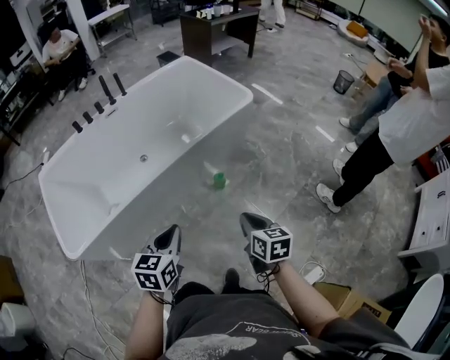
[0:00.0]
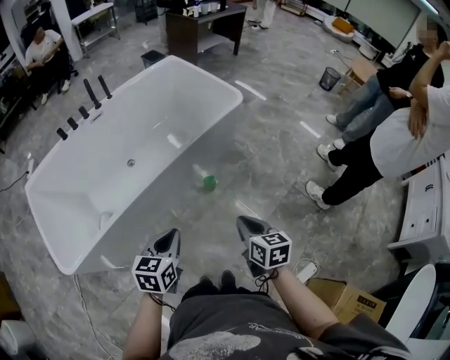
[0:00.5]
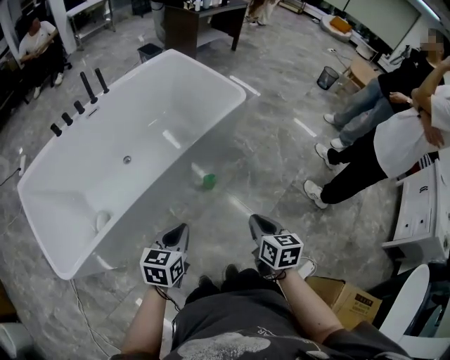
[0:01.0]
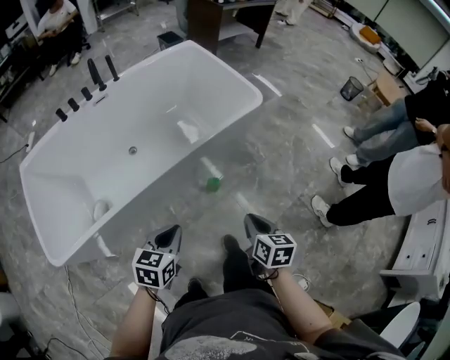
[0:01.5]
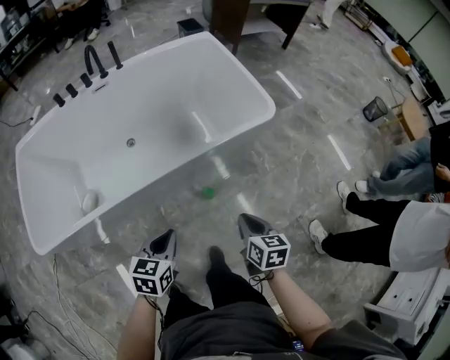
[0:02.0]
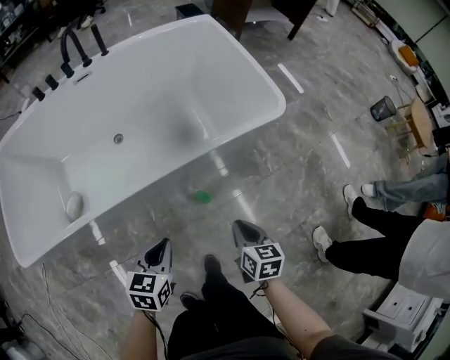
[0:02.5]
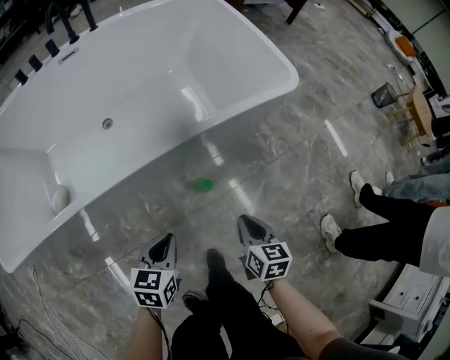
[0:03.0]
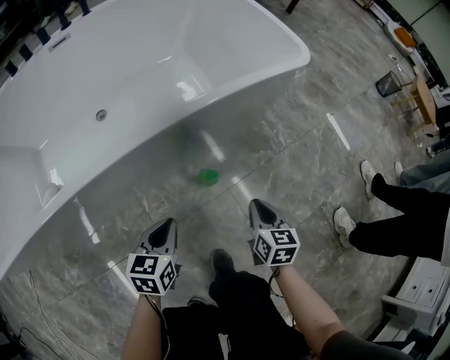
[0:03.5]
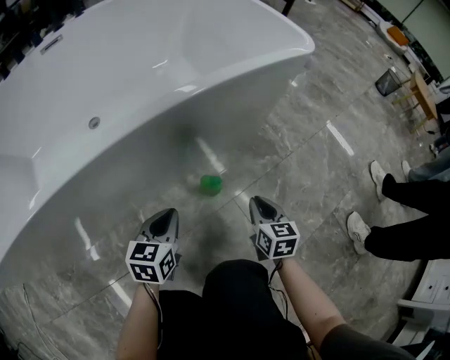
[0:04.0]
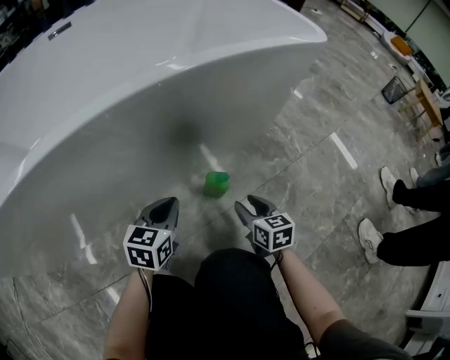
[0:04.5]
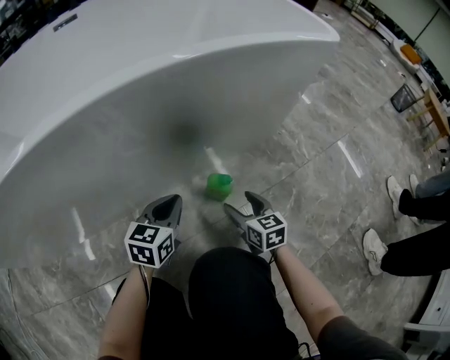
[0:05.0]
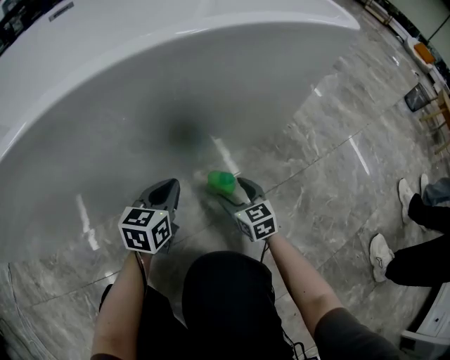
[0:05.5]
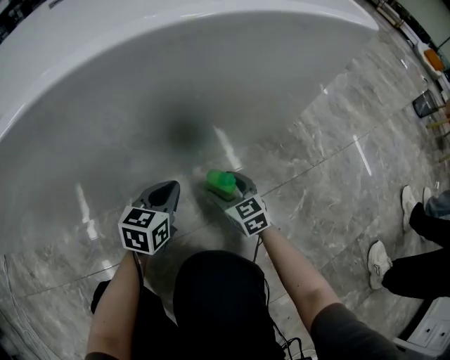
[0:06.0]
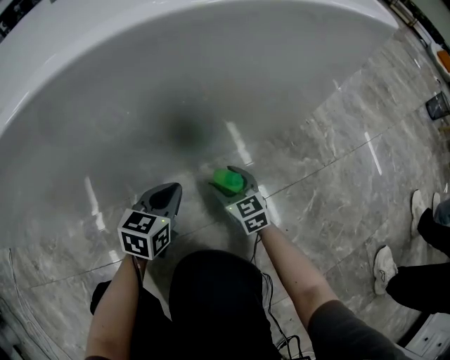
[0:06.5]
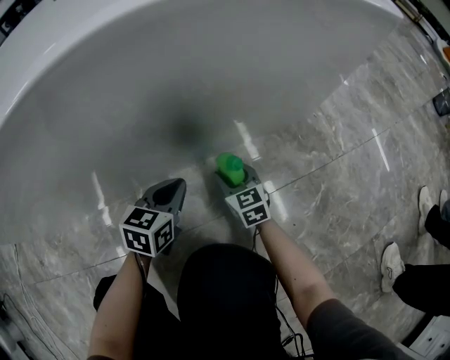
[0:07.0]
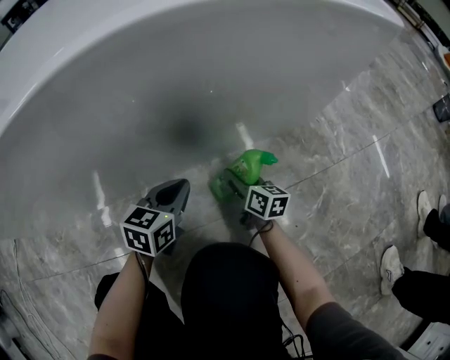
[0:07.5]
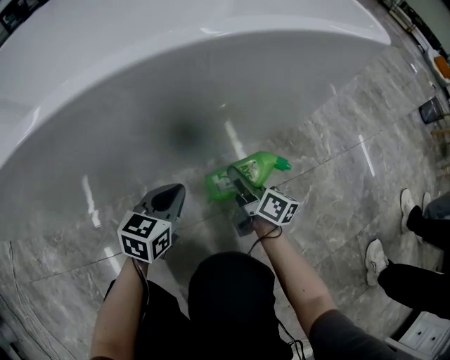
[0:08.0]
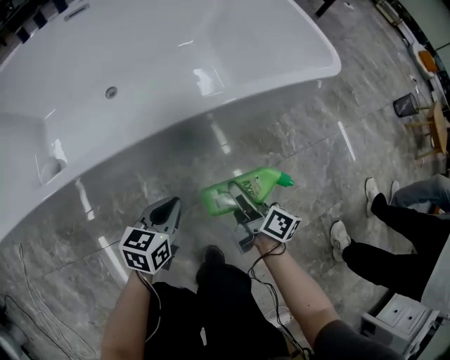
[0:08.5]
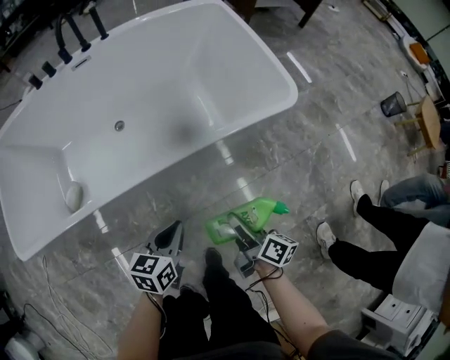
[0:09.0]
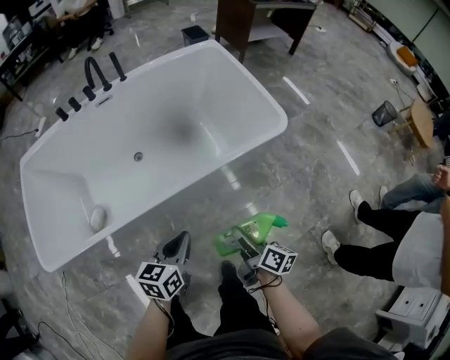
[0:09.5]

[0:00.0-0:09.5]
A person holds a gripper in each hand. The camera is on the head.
0:00.0 to 0:02.0: The right gripper shifts some 25 cm forward. The left gripper moves forward and downward, approximately 25 cm.
0:02.0 to 0:04.0: The grippers both shift downward by approximately 40 cm.
0:04.0 to 0:05.5: The right gripper goes roughly 20 cm downward, to the left and forward, rotates approximately 30 degrees, and opens up. Meanwhile the left gripper shifts roughly 15 cm downward and forward.
0:05.5 to 0:07.5: The right gripper ends up about 5 cm from where it was, turns by about 40 degrees, and closes.
0:07.5 to 0:09.5: The grippers both shift upward by approximately 60 cm. The right gripper turns by about 30 degrees.

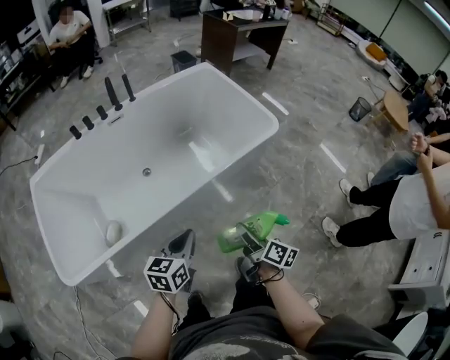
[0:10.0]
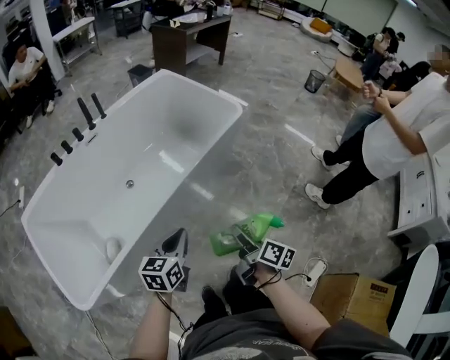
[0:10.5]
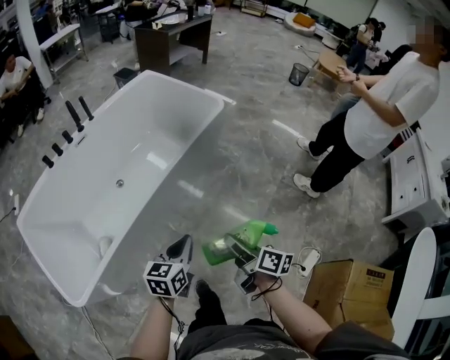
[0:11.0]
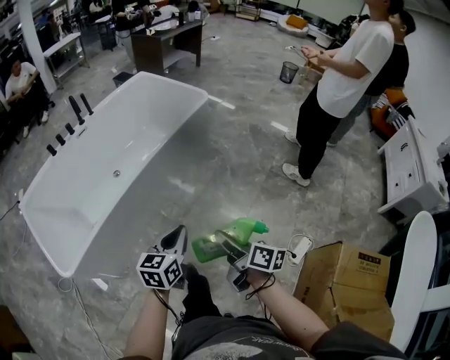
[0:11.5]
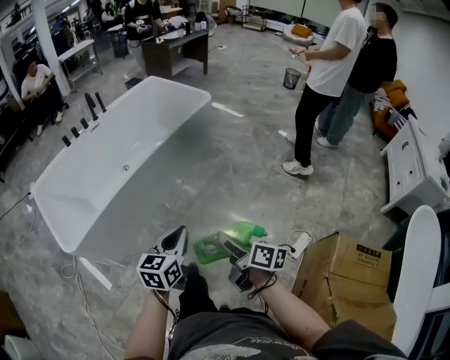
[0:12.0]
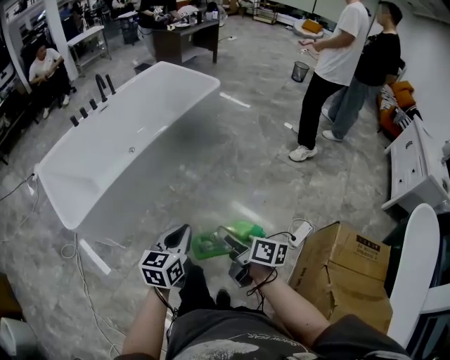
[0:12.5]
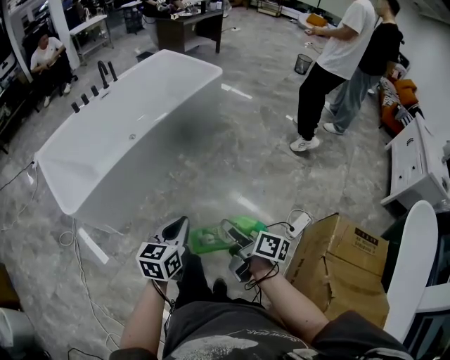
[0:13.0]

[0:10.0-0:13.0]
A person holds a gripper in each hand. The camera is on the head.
0:10.0 to 0:11.5: The two grippers go some 35 cm backward.
0:11.5 to 0:13.0: The grippers both shift backward by about 25 cm.

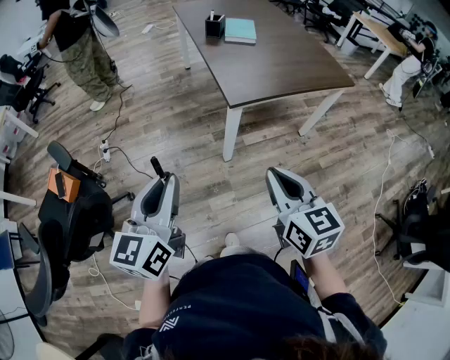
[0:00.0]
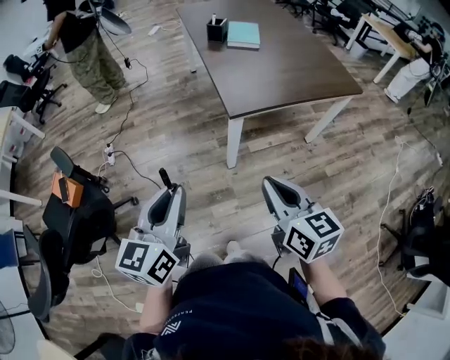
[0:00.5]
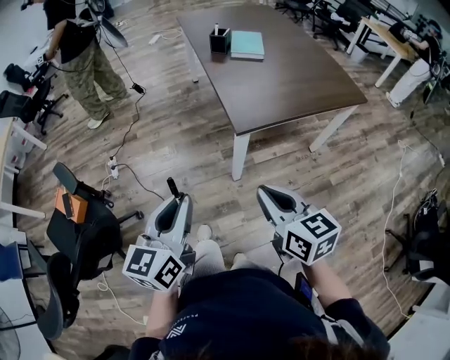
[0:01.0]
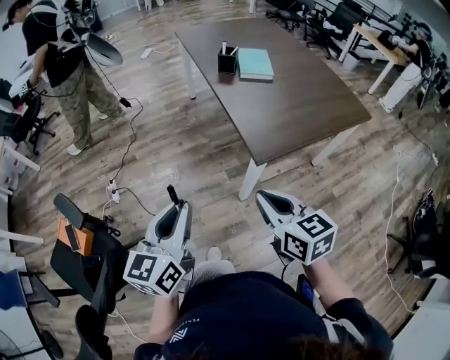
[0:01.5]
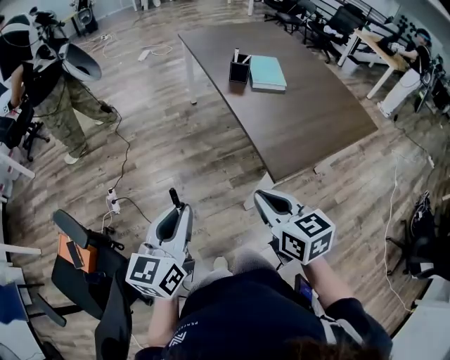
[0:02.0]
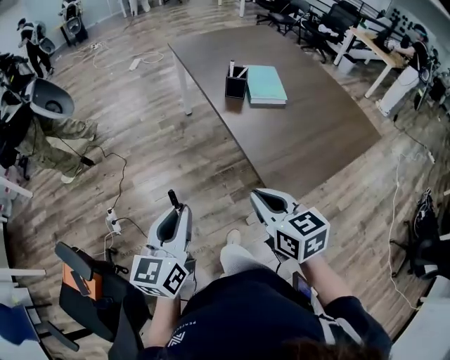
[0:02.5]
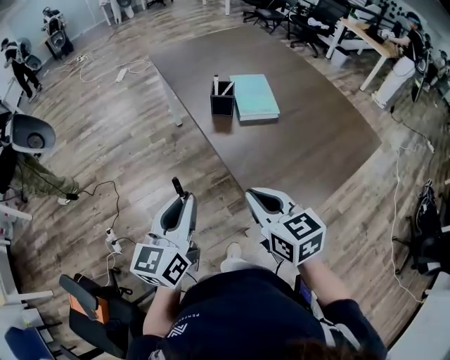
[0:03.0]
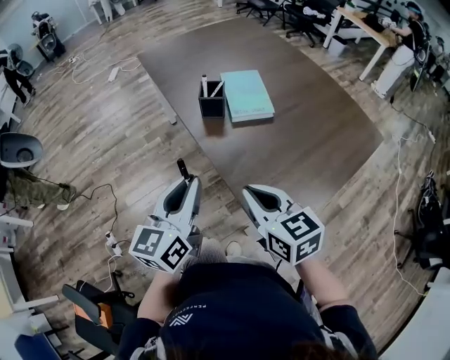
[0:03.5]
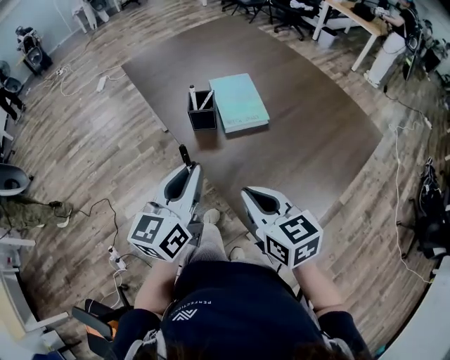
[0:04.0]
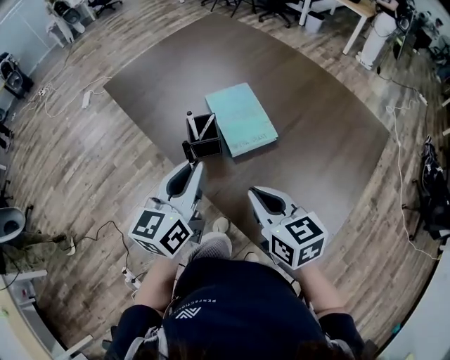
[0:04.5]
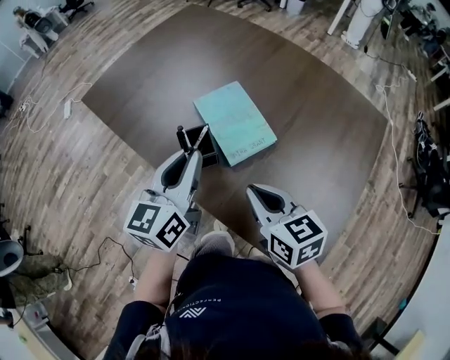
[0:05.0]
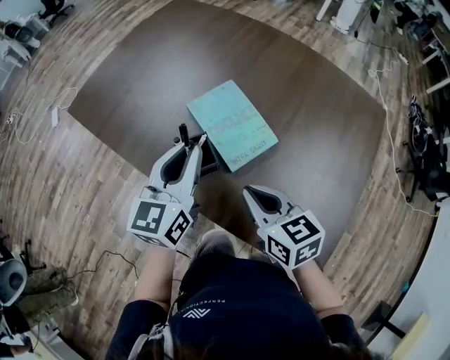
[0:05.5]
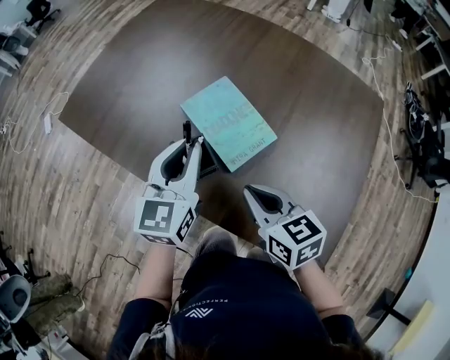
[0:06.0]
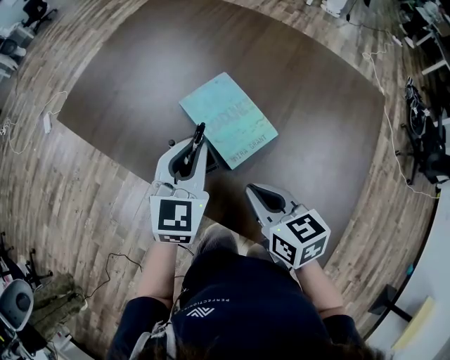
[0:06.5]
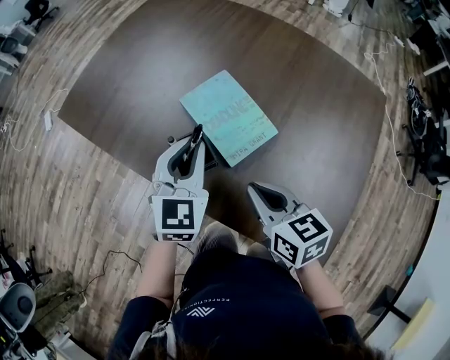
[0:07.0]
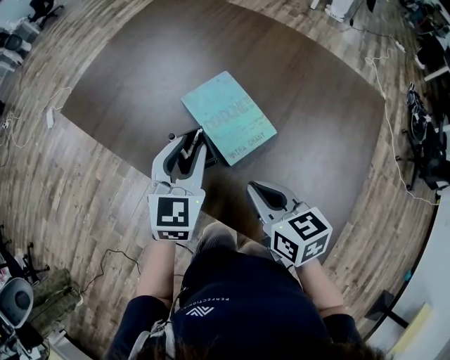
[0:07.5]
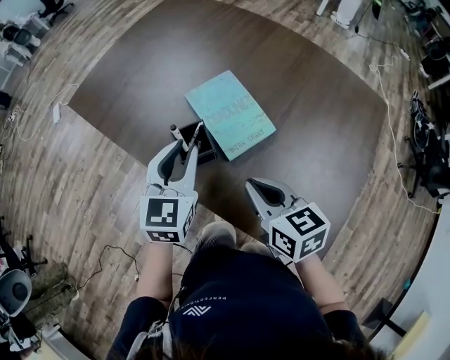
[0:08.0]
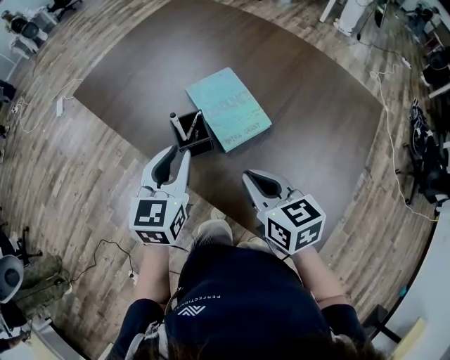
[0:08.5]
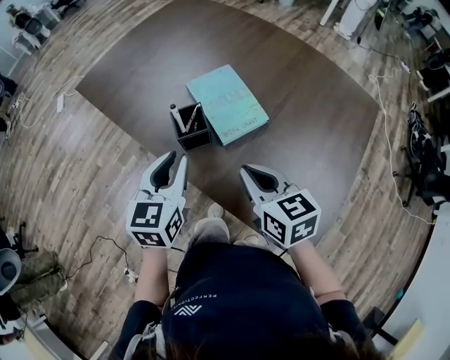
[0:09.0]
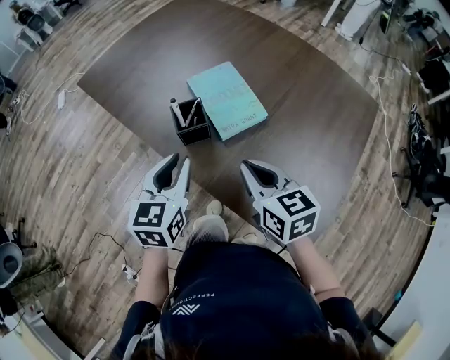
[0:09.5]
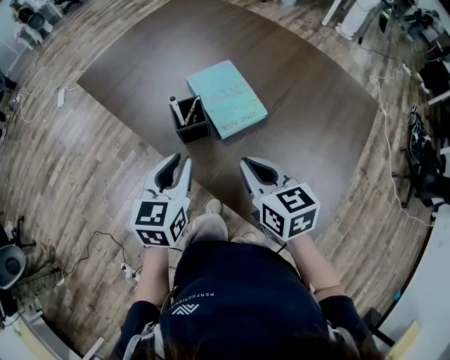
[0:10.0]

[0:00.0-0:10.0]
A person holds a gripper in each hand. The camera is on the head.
0:00.0 to 0:02.0: Both grippers move forward and to the left, roughly 30 cm.
0:02.0 to 0:04.0: The grippers both shift forward by some 35 cm.
0:04.0 to 0:06.0: The grippers both shift forward by approximately 25 cm. The right gripper turns by about 30 degrees. Meanwhile the left gripper rotates roughly 30 degrees.
0:06.0 to 0:08.0: The grippers make only small movements.
0:08.0 to 0:10.0: The left gripper heads backward, covering approximately 10 cm.

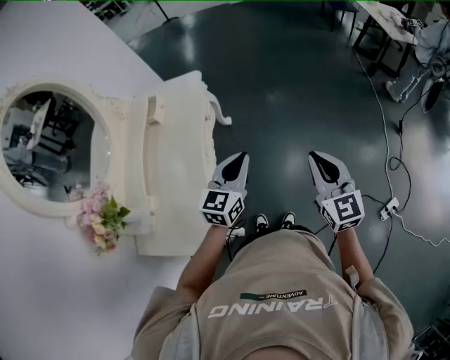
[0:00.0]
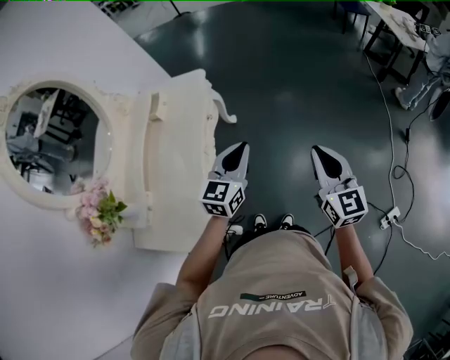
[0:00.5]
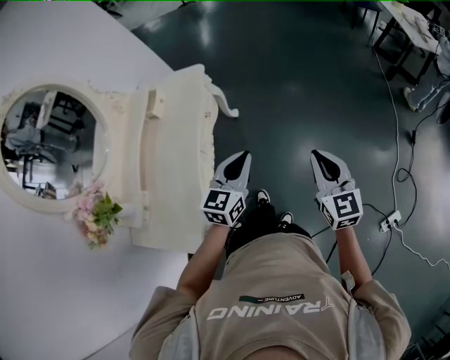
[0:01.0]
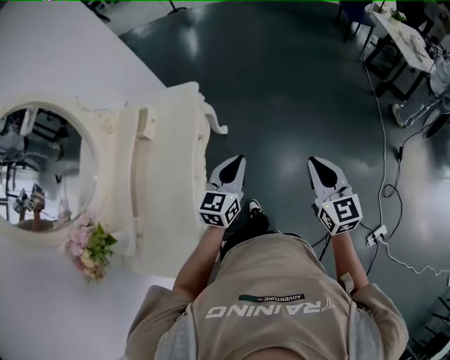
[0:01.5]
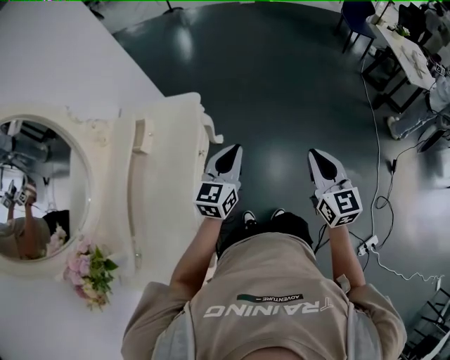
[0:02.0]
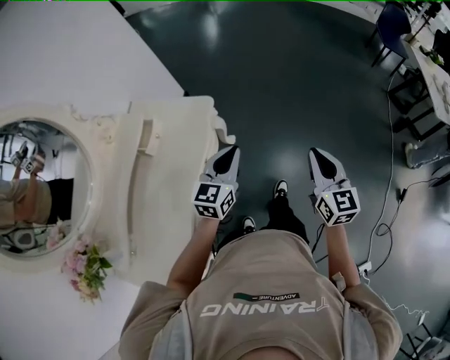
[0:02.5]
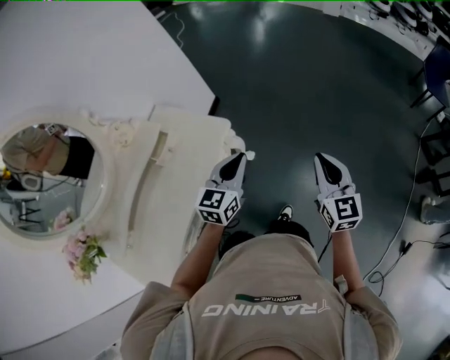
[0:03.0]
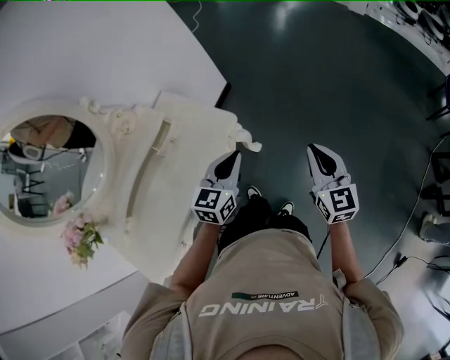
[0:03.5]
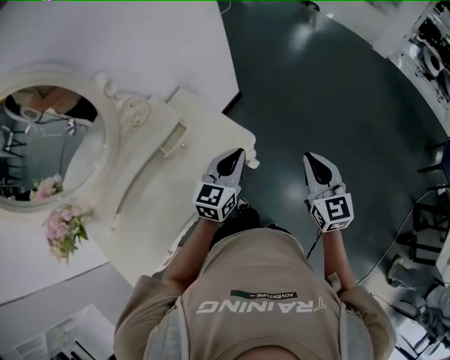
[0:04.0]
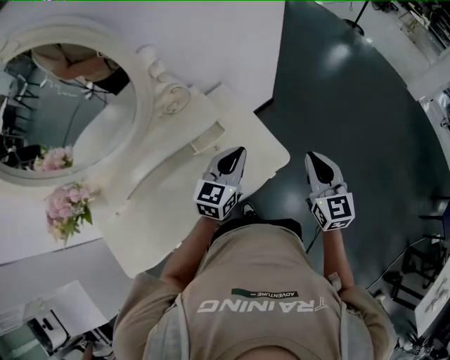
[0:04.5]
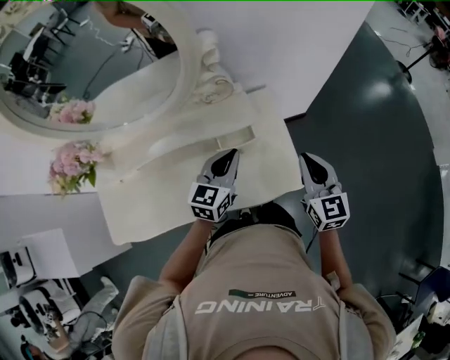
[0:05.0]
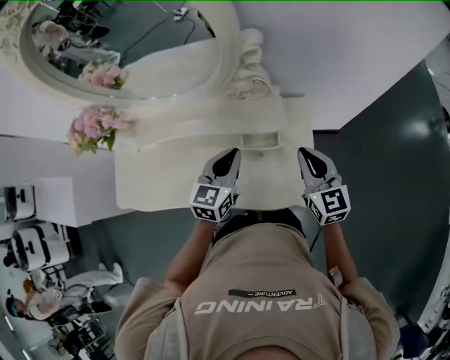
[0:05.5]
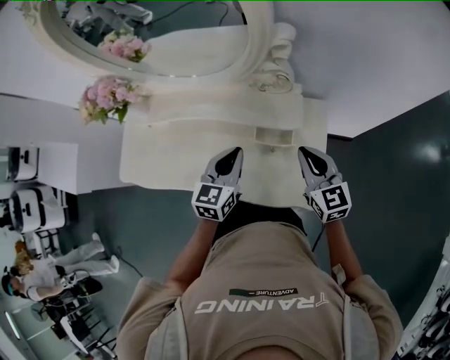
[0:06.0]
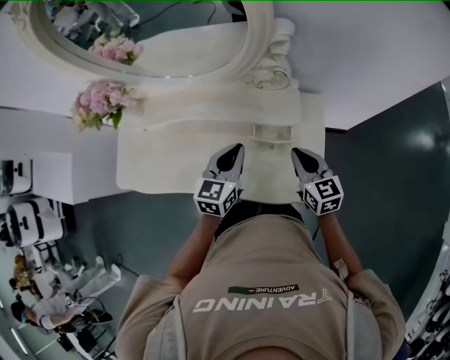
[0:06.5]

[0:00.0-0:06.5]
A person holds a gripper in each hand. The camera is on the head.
0:00.0 to 0:02.0: Both grippers travel together forward, some 25 cm.
0:02.0 to 0:04.5: The left gripper moves about 35 cm, and changes its angle by roughly 50 degrees; the right gripper changes place by approximately 50 cm, and rotates roughly 50 degrees.
0:04.5 to 0:06.5: The left gripper shifts by some 15 cm, and swivels roughly 50 degrees; the right gripper ends up roughly 25 cm from where it was, and swivels about 50 degrees.
